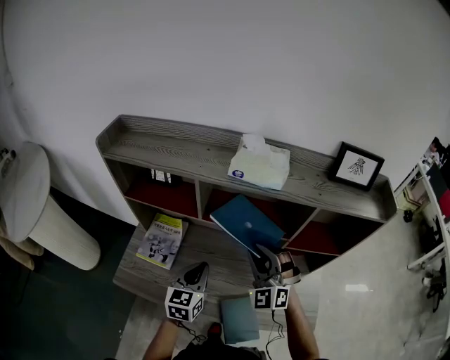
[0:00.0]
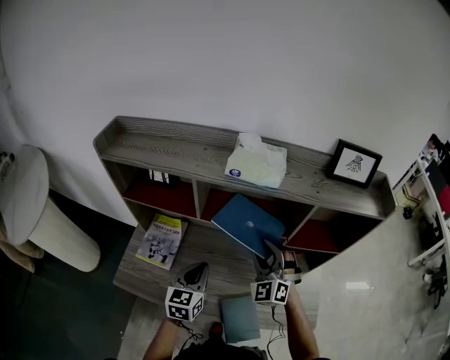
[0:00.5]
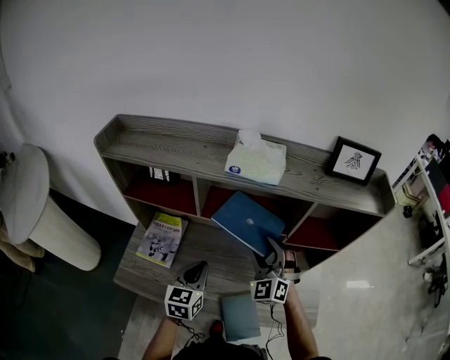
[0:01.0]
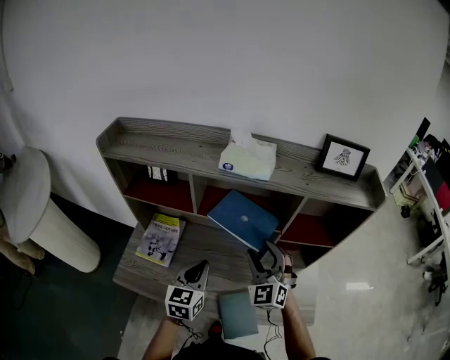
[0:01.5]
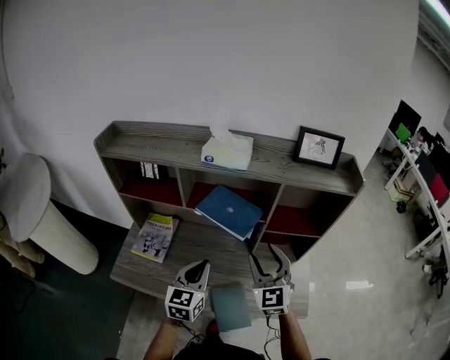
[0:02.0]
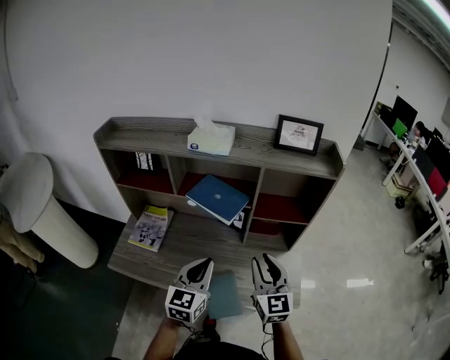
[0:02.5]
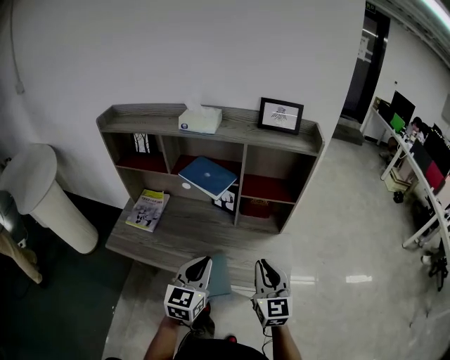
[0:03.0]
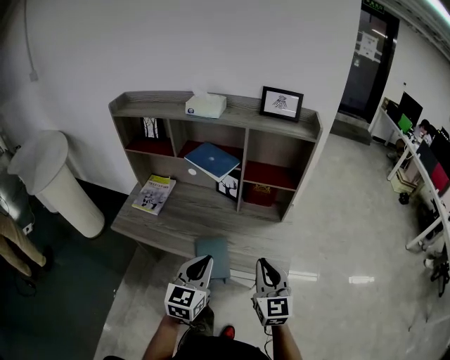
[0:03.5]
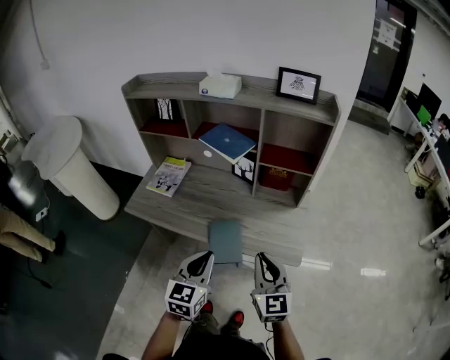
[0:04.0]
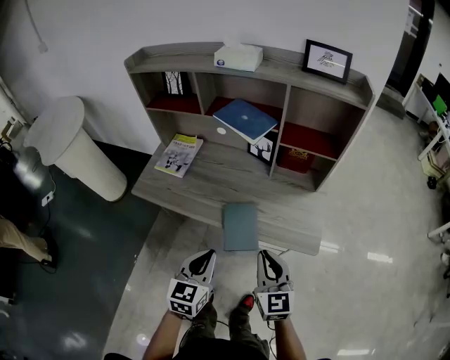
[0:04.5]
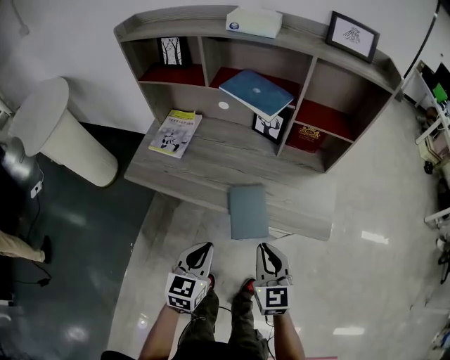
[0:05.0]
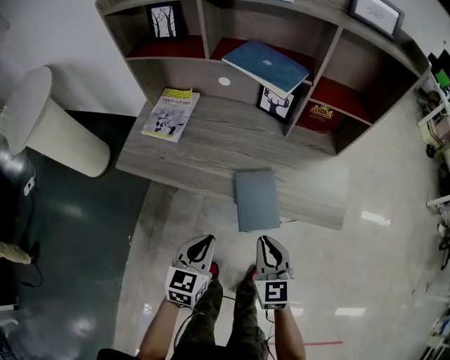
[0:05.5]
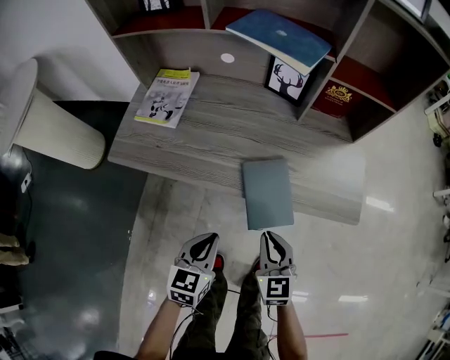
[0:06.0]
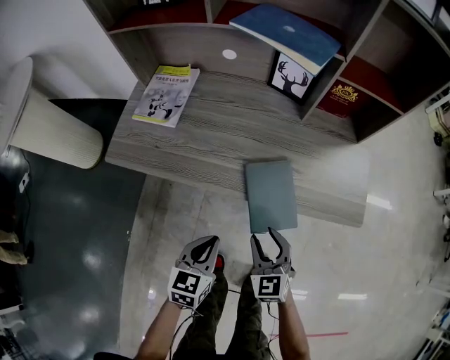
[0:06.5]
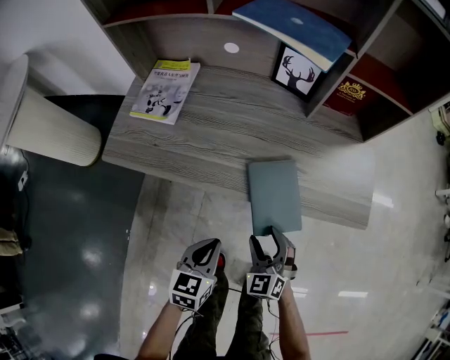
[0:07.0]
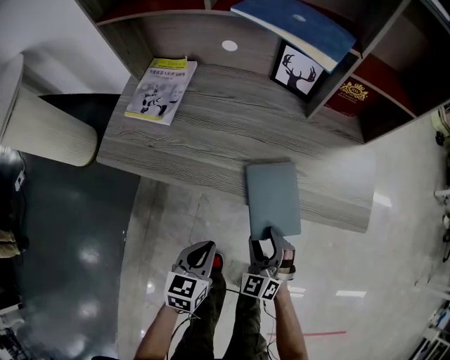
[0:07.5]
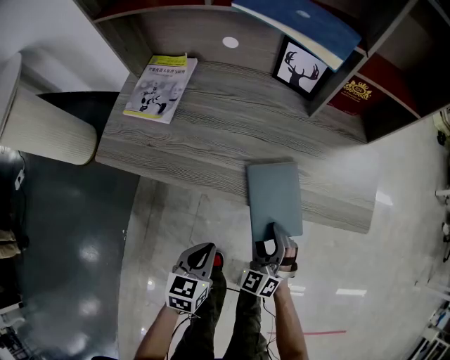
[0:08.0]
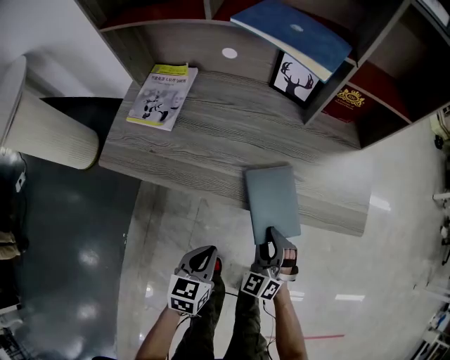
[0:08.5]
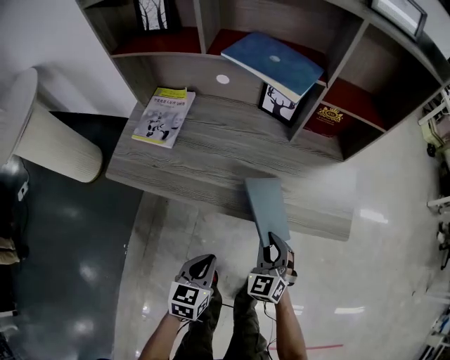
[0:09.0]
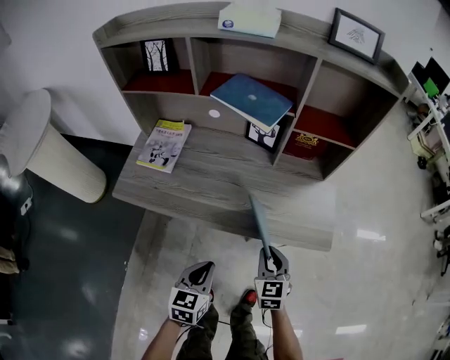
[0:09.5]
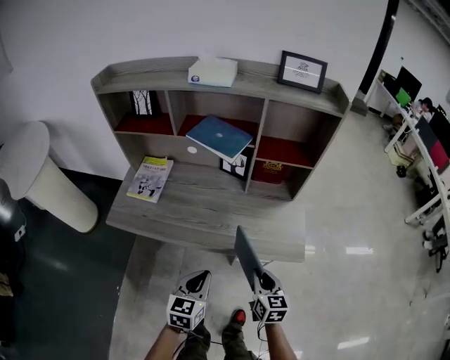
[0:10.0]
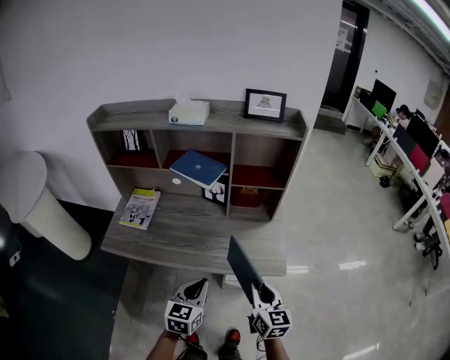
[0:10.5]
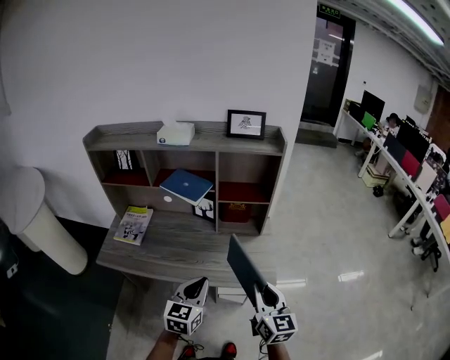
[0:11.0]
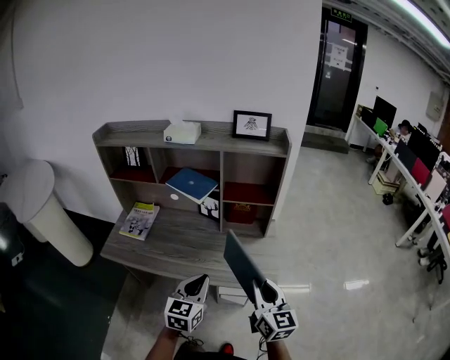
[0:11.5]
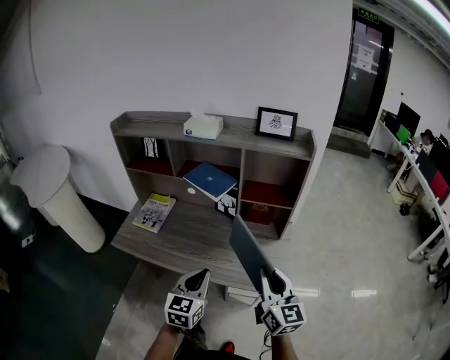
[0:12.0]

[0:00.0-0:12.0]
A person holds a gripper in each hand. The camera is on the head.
0.0 to 2.0 s: The right gripper shifts approximately 10 cm to the right and backward, swivels roughly 30 degrees, and opens, while the left gripper travels to the right, backward and upward by approximately 10 cm.
2.0 to 4.0 s: The right gripper is displaced backward by approximately 25 cm, turns by approximately 20 degrees, and closes up; the left gripper goes about 30 cm backward and to the right.
4.0 to 6.0 s: Both grippers travel together downward and to the left, approximately 30 cm. The right gripper swivels roughly 20 degrees.
6.0 to 8.0 s: Both grippers travel together downward, about 10 cm. The right gripper swivels some 40 degrees, and opens its fingers.
8.0 to 10.0 s: The grippers both shift upward and to the right by some 25 cm. The right gripper twists roughly 60 degrees clockwise, seen from behind, and closes its fingers.
10.0 to 12.0 s: The left gripper shifts roughly 15 cm upward and to the right. Meanwhile the right gripper moves upward, some 25 cm, and rotates about 30 degrees.

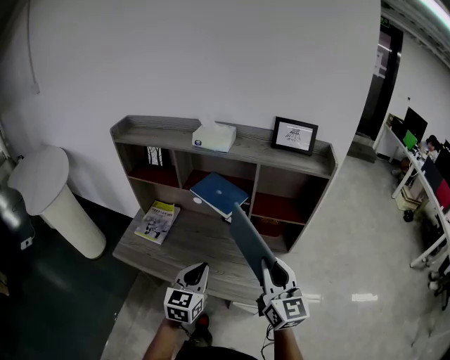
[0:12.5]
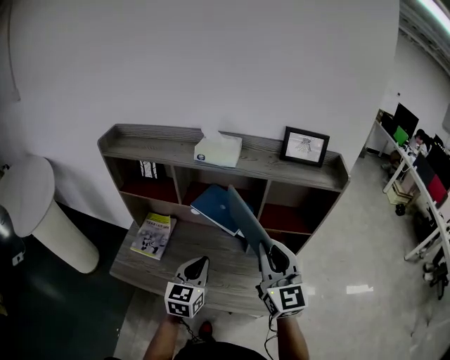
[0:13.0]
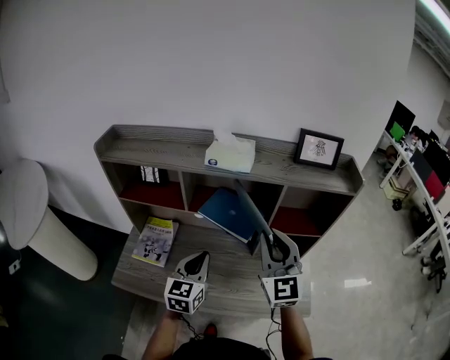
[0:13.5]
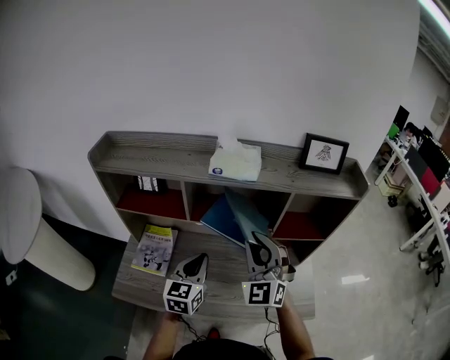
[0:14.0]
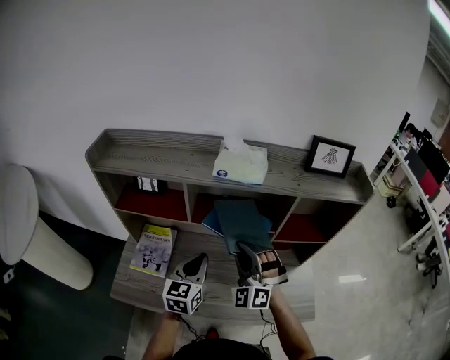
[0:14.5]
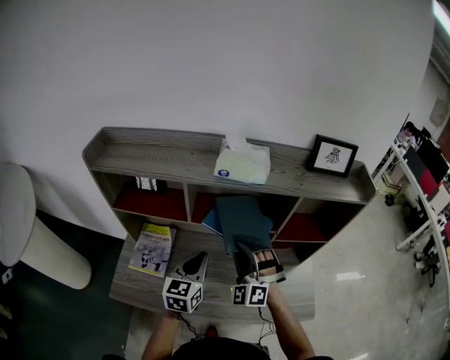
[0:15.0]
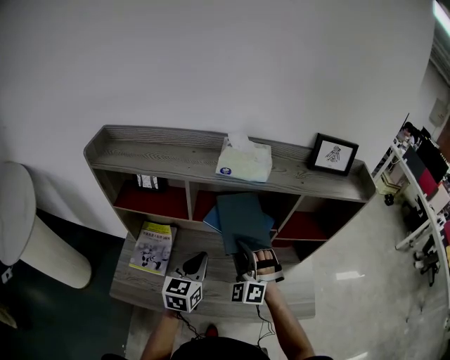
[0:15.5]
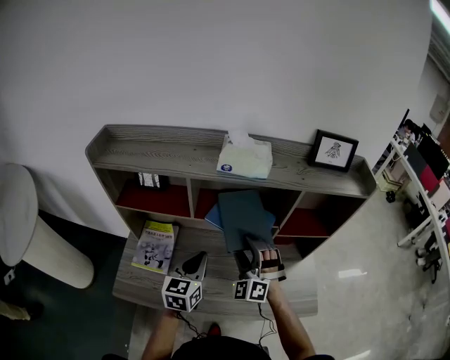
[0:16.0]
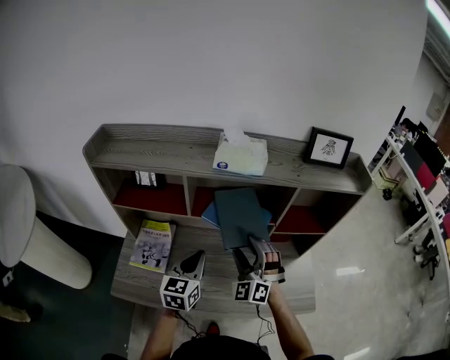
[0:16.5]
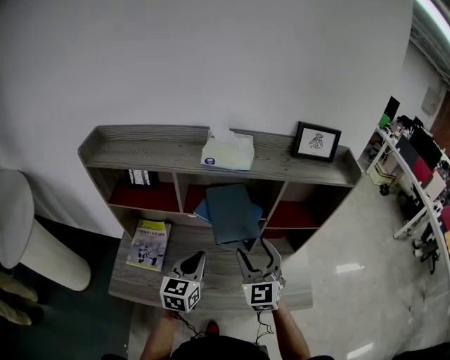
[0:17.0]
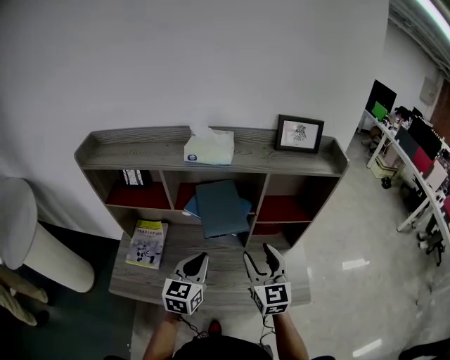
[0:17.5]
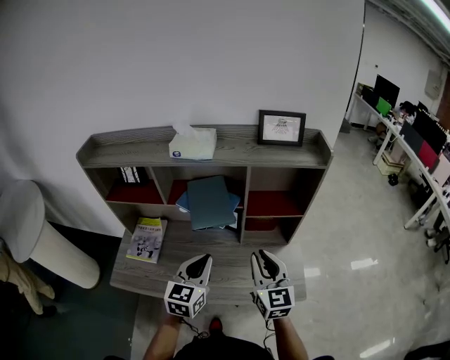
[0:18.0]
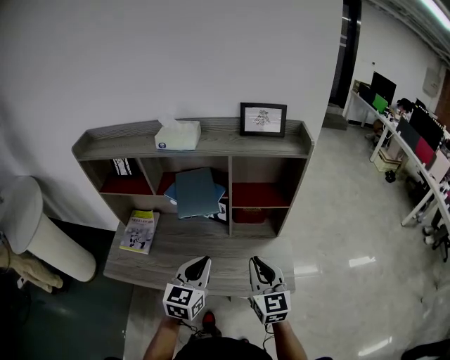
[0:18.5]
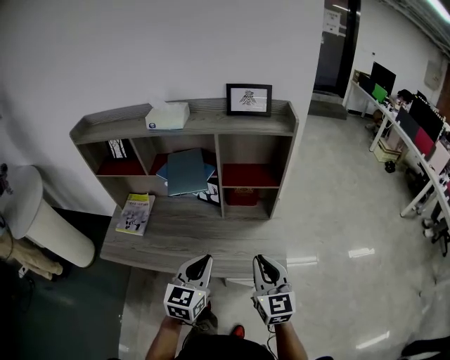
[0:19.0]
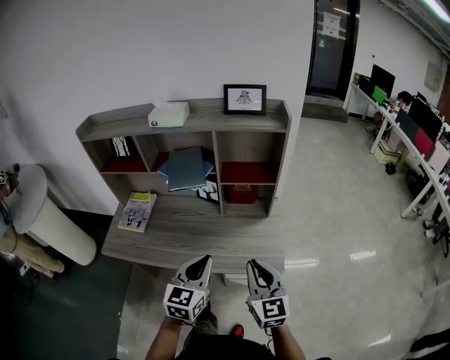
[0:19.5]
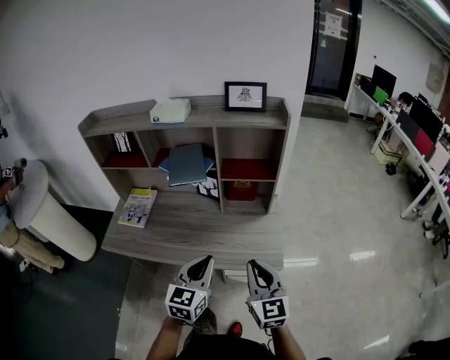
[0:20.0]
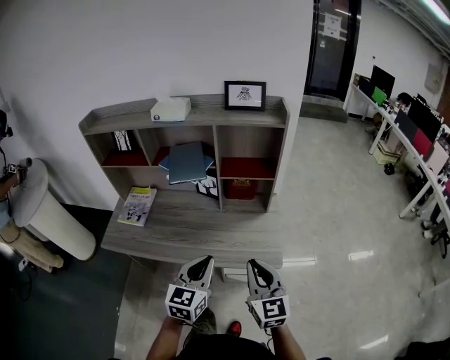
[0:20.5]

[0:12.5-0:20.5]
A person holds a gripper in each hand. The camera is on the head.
12.5 to 14.5 s: The right gripper heads to the left and forward, covering about 30 cm, and twists roughly 70 degrees counterclockwise, seen from behind. Meanwhile the left gripper travels forward and to the left by about 25 cm.
14.5 to 16.5 s: The right gripper opens up.
16.5 to 18.5 s: Both grippers travel together to the right and backward, about 25 cm. The right gripper rotates around the line of its fingers by some 60 degrees, clockwise from behind, and closes its fingers.
18.5 to 20.5 s: Both grippers travel together backward and to the right, approximately 15 cm.

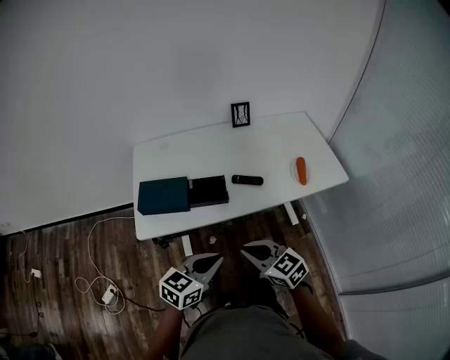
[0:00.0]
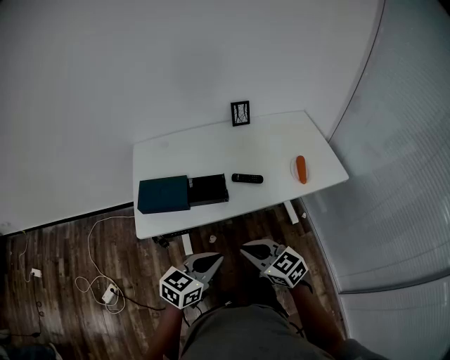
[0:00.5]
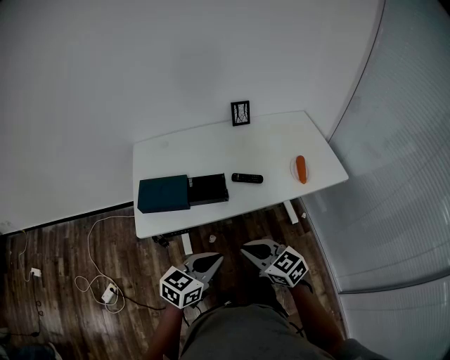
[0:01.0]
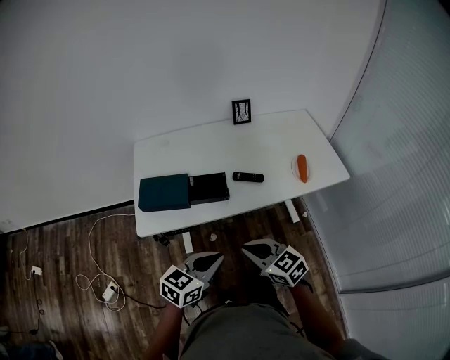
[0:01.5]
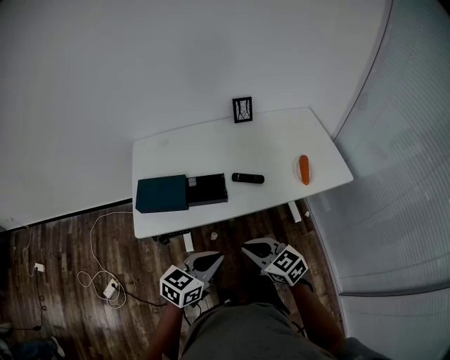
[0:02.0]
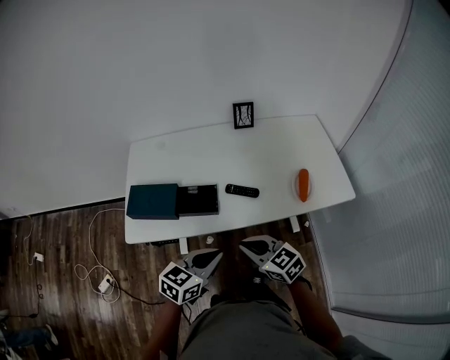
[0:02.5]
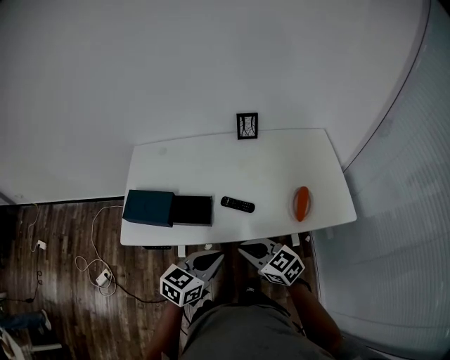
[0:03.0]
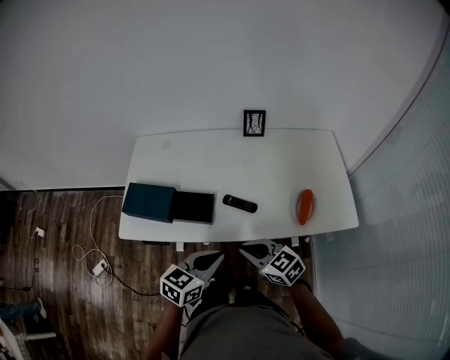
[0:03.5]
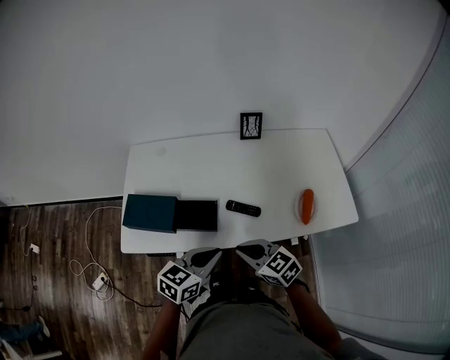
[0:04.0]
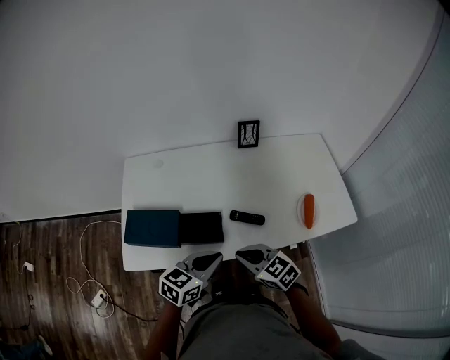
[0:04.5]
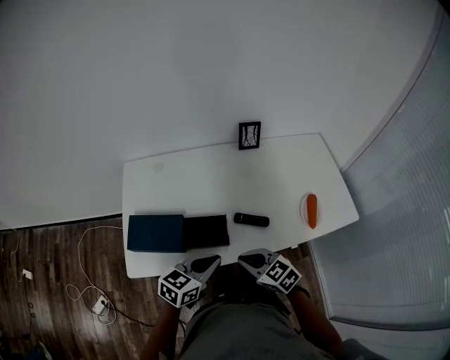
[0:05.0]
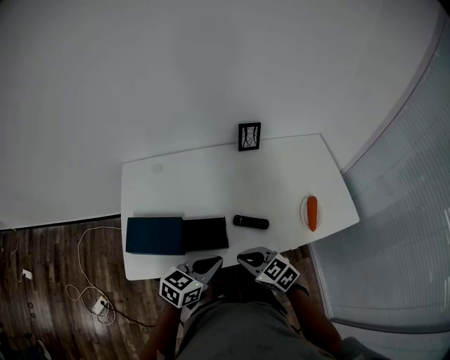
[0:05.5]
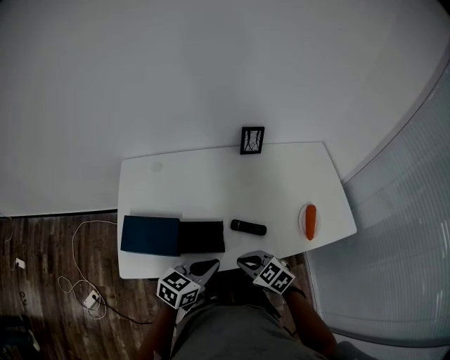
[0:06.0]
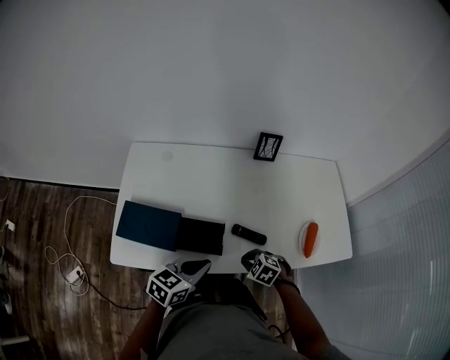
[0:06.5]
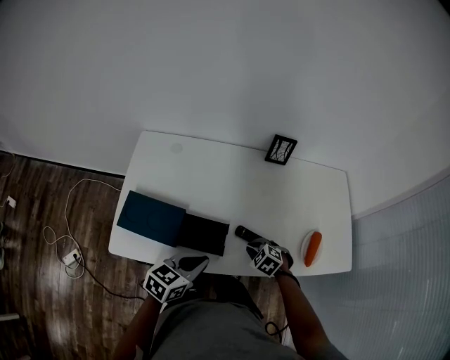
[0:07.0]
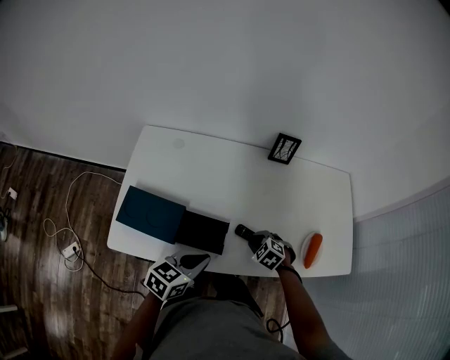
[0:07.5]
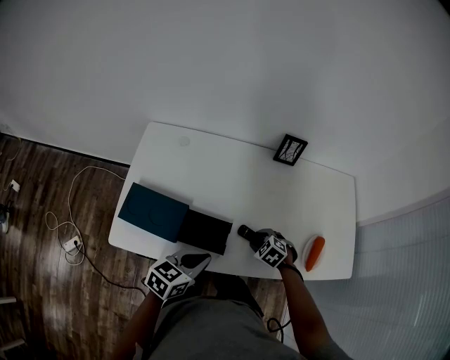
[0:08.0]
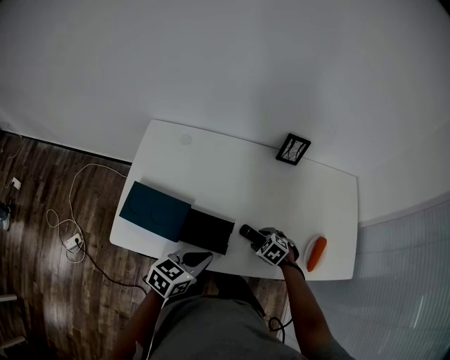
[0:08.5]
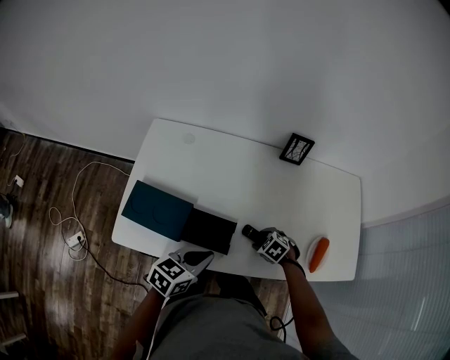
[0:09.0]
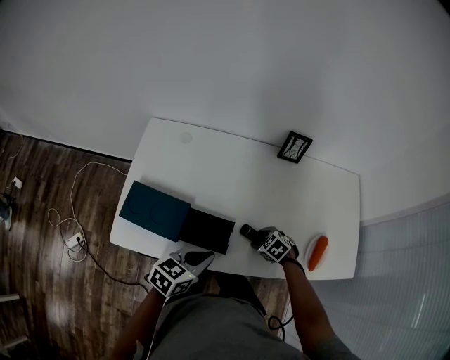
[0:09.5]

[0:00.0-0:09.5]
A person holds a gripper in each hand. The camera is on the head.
0.0 to 2.0 s: There are only small adjustments of the grippers.
2.0 to 4.0 s: The grippers both shift forward and to the right by approximately 15 cm.
4.0 to 5.5 s: The left gripper heads to the left, covering some 5 cm, while the right gripper ends up roughly 10 cm from where it was.
5.5 to 7.5 s: The left gripper moves roughly 5 cm, while the right gripper shifts about 20 cm downward, forward and to the right, and tips its fingers downward by roughly 30 degrees.
7.5 to 9.5 s: The right gripper opens.
